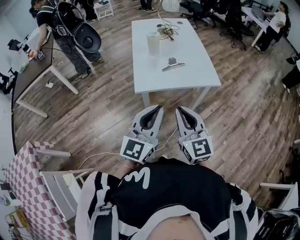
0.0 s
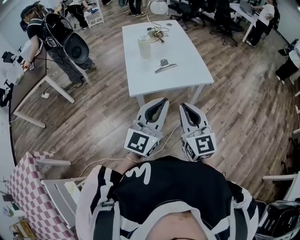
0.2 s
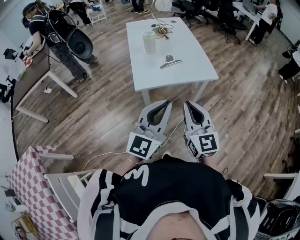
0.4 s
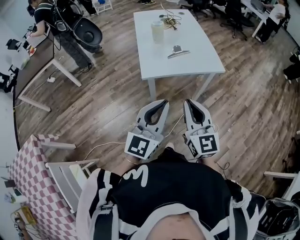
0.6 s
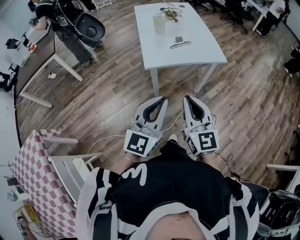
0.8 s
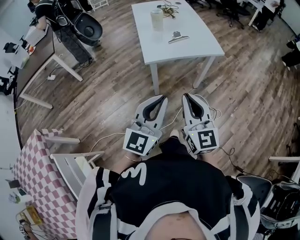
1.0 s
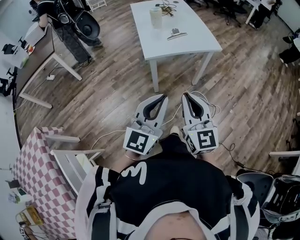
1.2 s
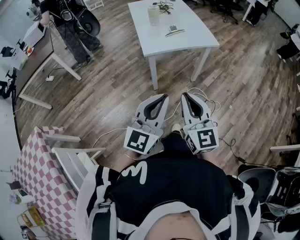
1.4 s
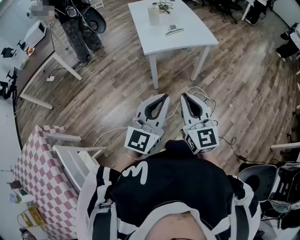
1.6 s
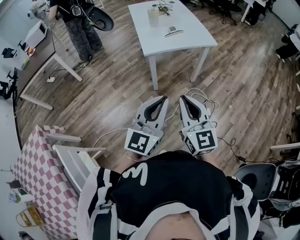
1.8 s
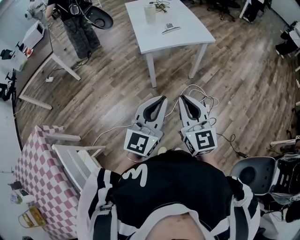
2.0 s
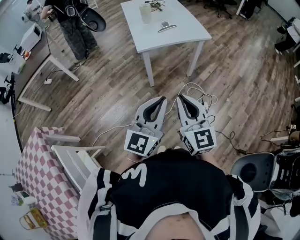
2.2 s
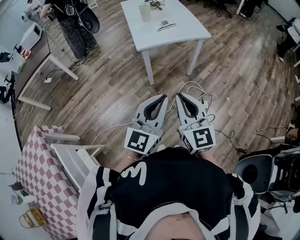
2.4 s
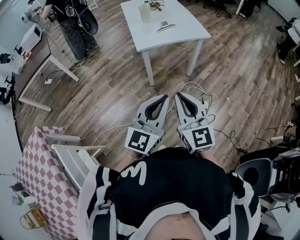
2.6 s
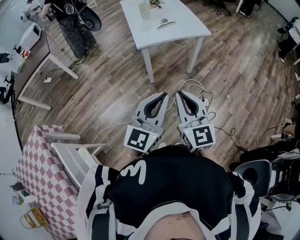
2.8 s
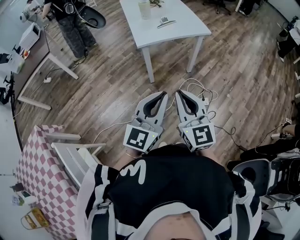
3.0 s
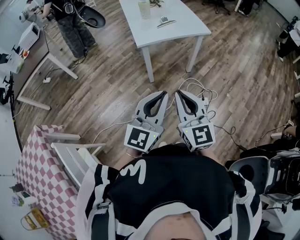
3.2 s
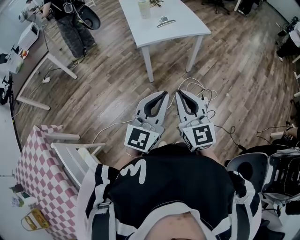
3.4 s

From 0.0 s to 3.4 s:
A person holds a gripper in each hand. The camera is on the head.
From 0.0 s to 1.6 s: The grippers both shift backward by some 25 cm.
From 1.6 s to 3.4 s: The grippers make only small movements.

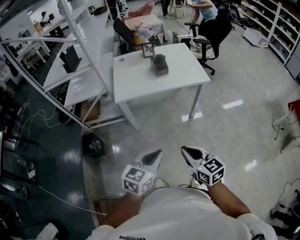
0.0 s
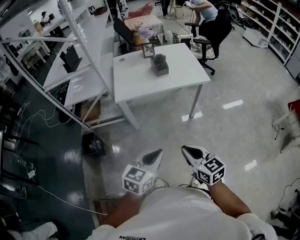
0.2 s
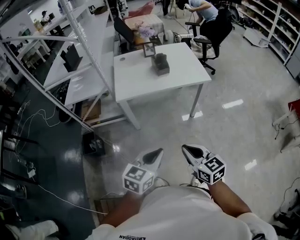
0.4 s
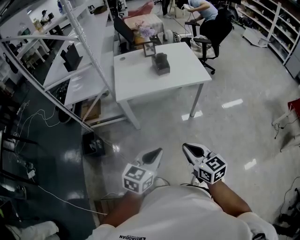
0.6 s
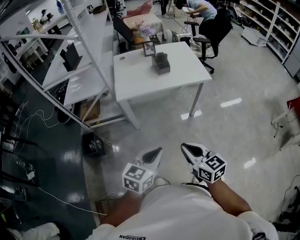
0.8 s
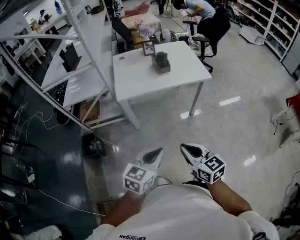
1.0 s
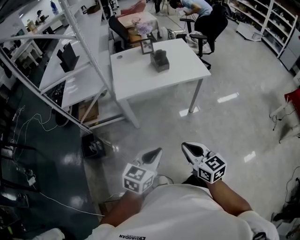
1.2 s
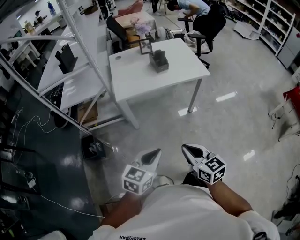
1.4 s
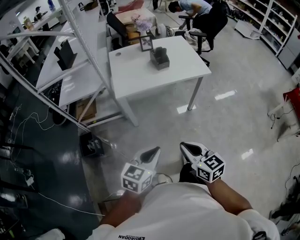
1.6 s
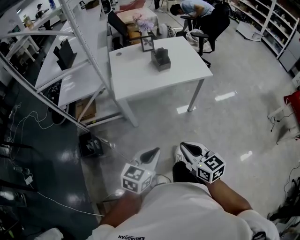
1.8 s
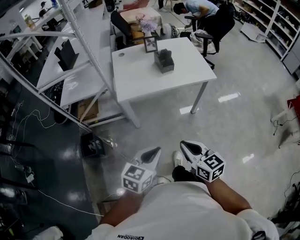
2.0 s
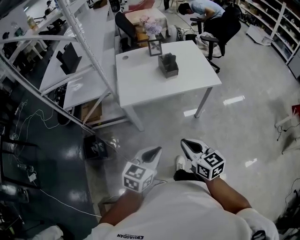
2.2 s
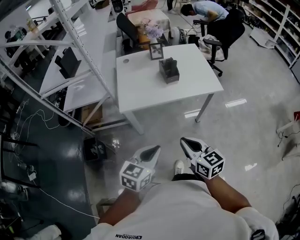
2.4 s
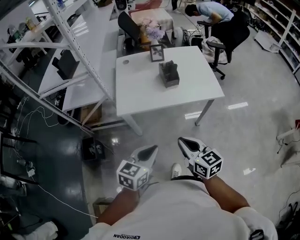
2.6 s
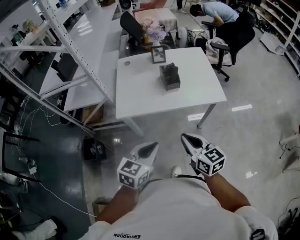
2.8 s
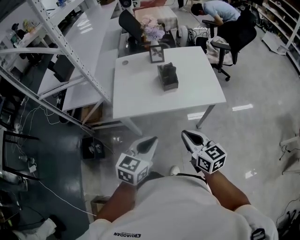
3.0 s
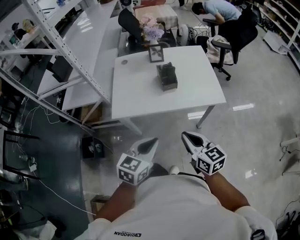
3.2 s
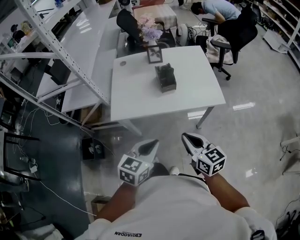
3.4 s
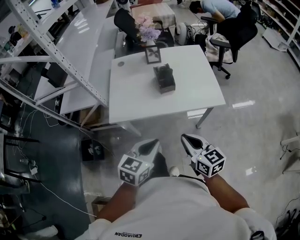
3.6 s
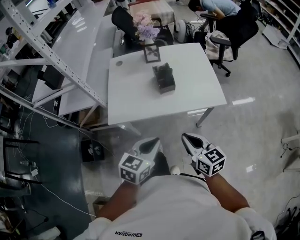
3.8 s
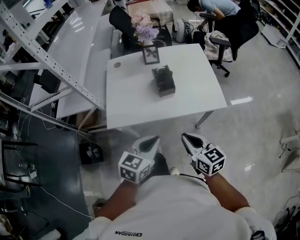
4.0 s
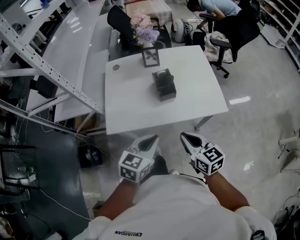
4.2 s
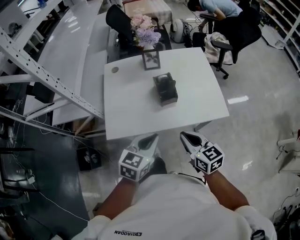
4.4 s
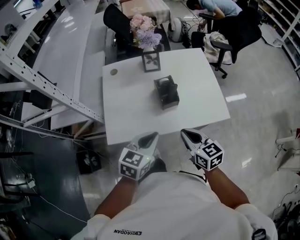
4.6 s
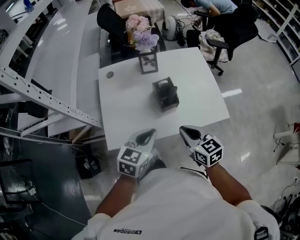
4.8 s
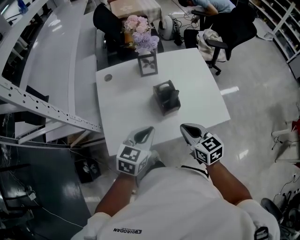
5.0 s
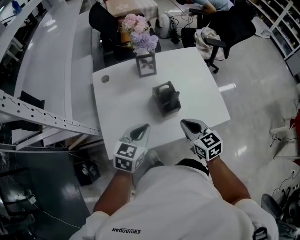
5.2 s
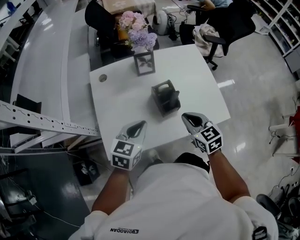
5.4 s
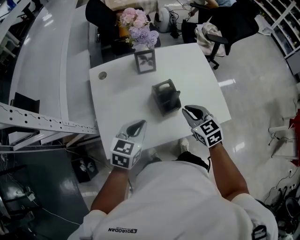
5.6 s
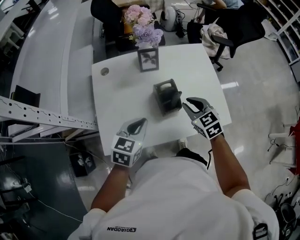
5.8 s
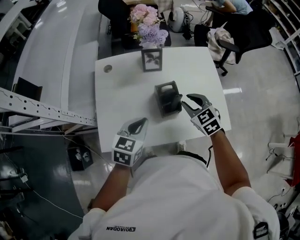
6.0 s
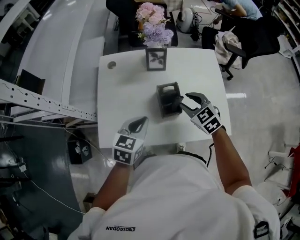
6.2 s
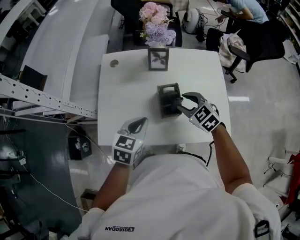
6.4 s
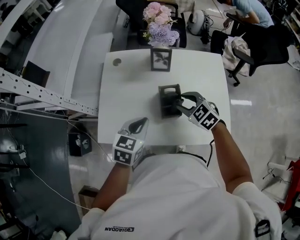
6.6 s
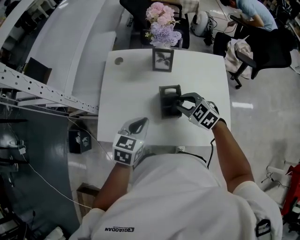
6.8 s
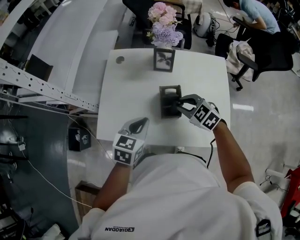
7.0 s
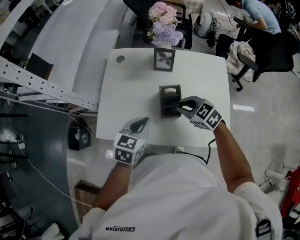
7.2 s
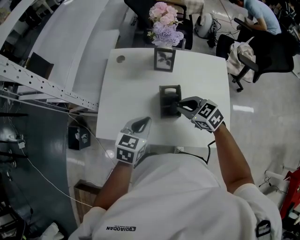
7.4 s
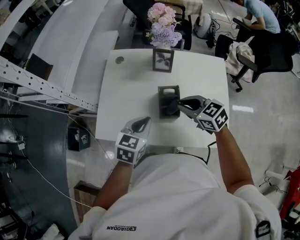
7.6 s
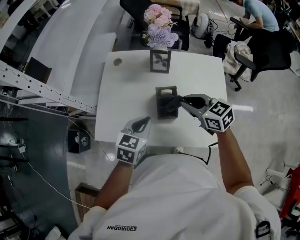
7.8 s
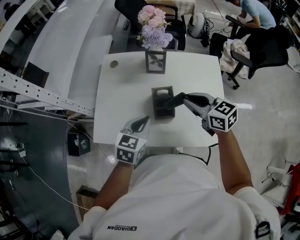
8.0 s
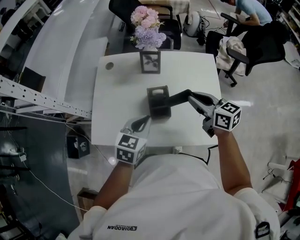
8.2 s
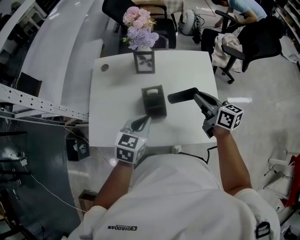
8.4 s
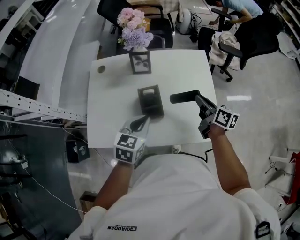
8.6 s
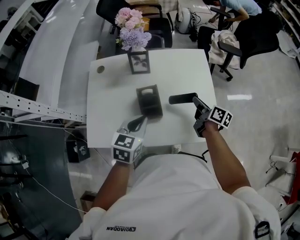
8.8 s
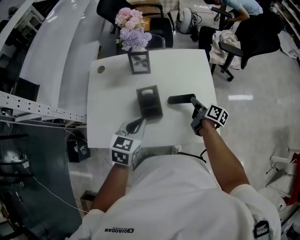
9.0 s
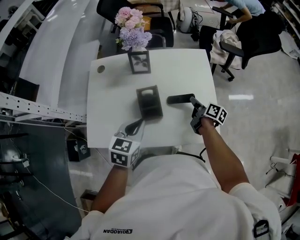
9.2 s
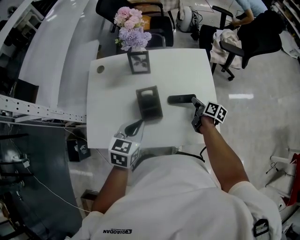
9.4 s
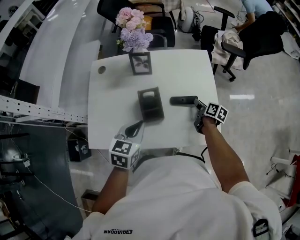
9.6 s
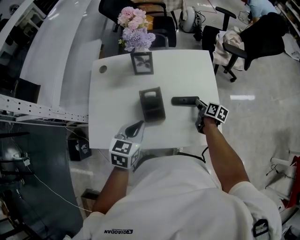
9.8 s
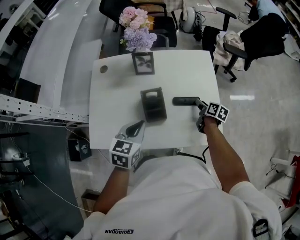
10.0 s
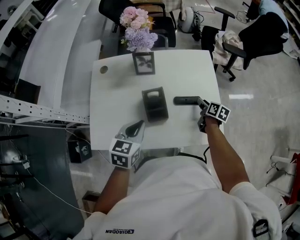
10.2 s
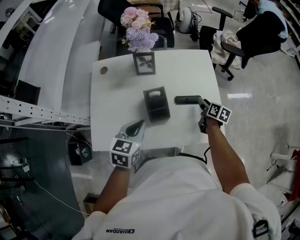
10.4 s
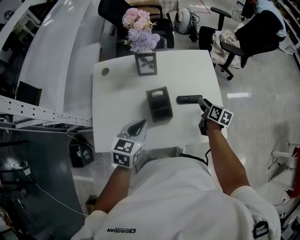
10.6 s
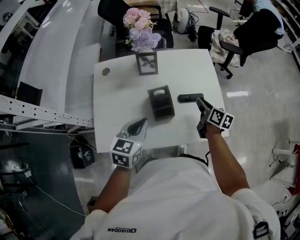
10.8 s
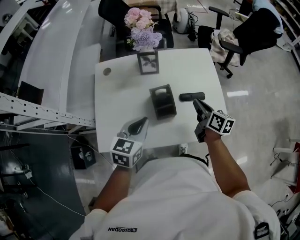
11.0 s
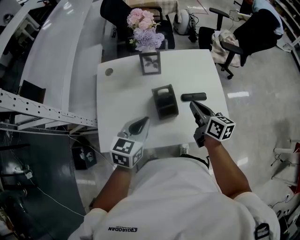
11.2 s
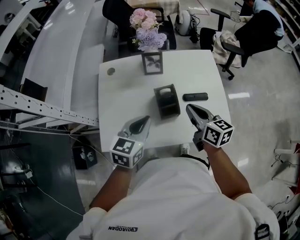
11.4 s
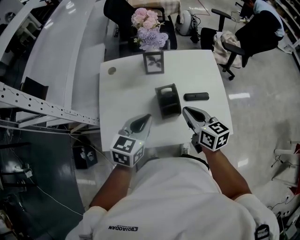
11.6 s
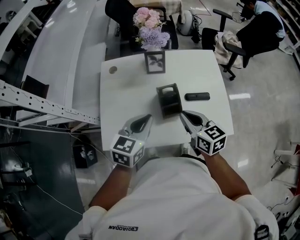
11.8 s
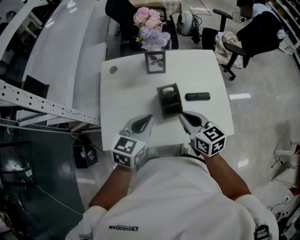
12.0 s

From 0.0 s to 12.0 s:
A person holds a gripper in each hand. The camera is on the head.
From 0.0 s to 1.6 s: The two grippers go roughly 10 cm to the left.
From 1.6 s to 3.0 s: The grippers both shift forward by some 25 cm.
From 3.0 s to 4.4 s: The grippers both shift forward by approximately 15 cm.
From 4.4 s to 6.0 s: The two grippers go about 20 cm forward. The right gripper turns by some 30 degrees, and opens.
From 6.0 s to 7.6 s: The right gripper rotates about 30 degrees.
From 7.6 s to 9.0 s: The right gripper moves to the right and downward, roughly 25 cm, and rolls clockwise, seen from behind, by approximately 70 degrees. The left gripper heads to the right, covering approximately 5 cm.
From 9.0 s to 10.4 s: The right gripper swivels some 20 degrees, and opens.
From 10.4 s to 12.0 s: The right gripper travels to the left, upward and backward by roughly 30 cm, changes its angle by about 40 degrees, and closes. Meanwhile the left gripper moves upward, some 5 cm.

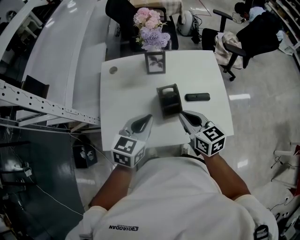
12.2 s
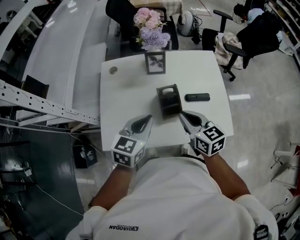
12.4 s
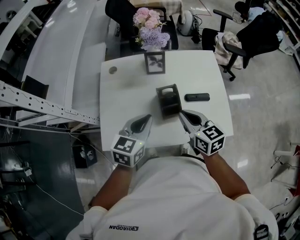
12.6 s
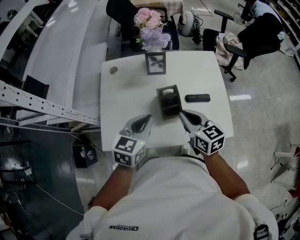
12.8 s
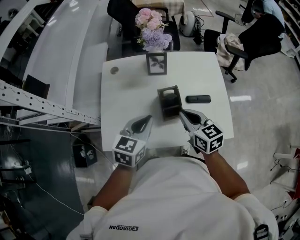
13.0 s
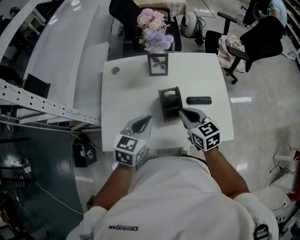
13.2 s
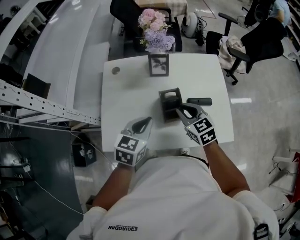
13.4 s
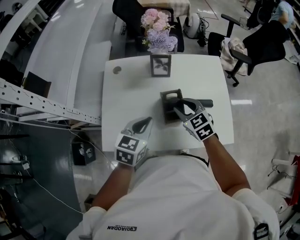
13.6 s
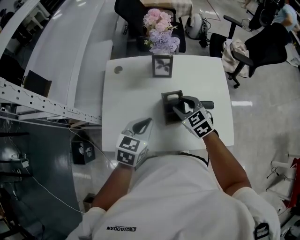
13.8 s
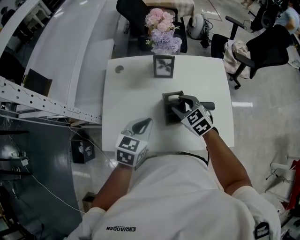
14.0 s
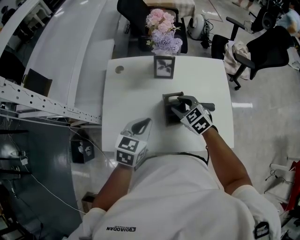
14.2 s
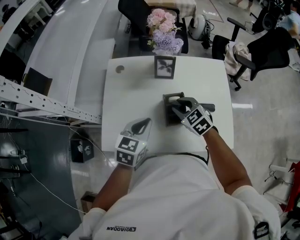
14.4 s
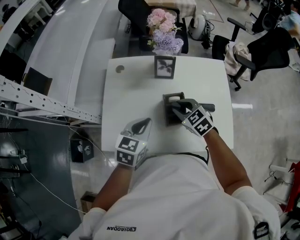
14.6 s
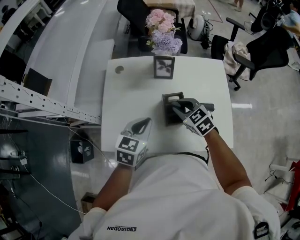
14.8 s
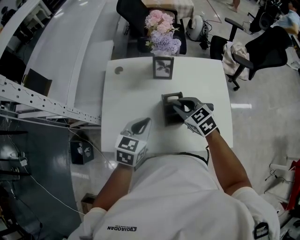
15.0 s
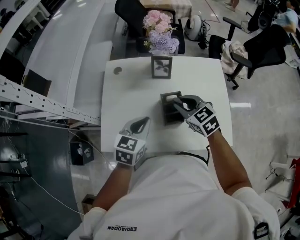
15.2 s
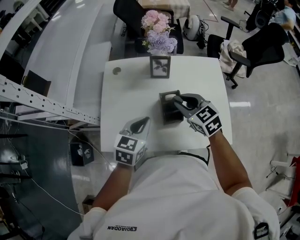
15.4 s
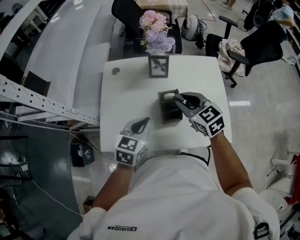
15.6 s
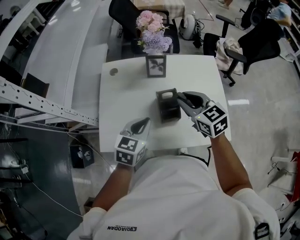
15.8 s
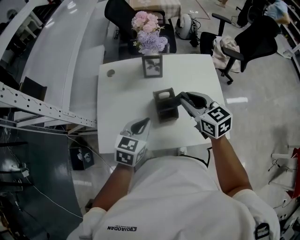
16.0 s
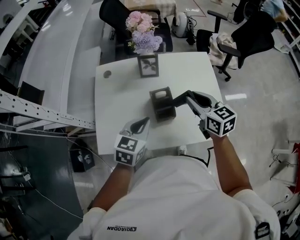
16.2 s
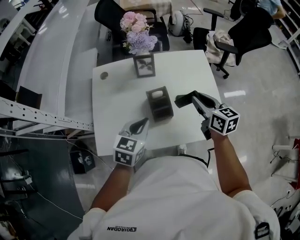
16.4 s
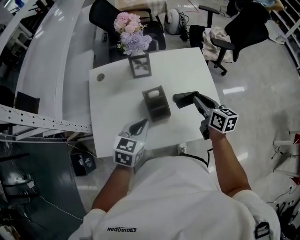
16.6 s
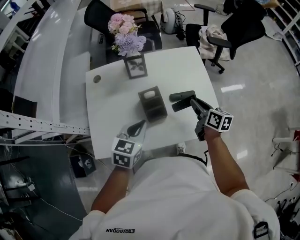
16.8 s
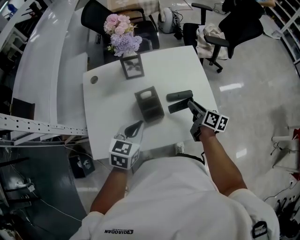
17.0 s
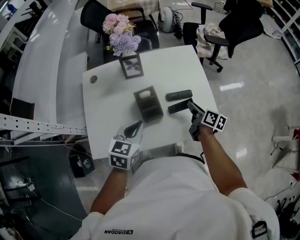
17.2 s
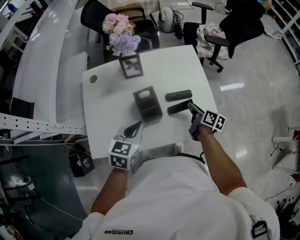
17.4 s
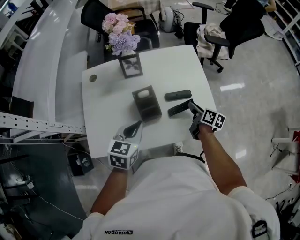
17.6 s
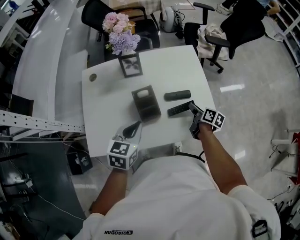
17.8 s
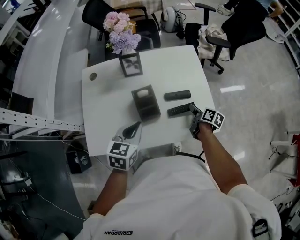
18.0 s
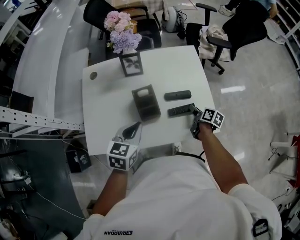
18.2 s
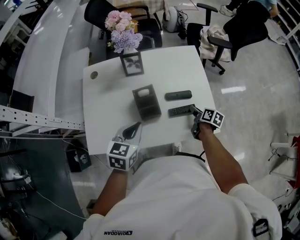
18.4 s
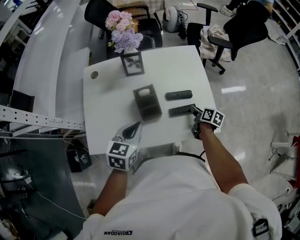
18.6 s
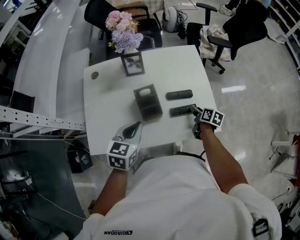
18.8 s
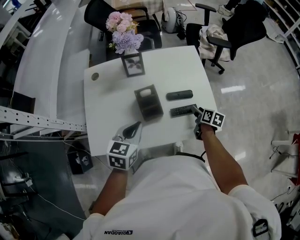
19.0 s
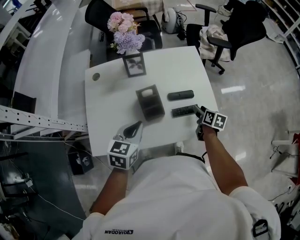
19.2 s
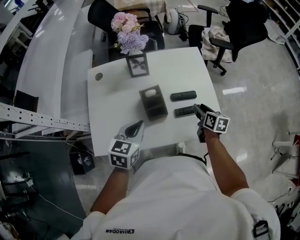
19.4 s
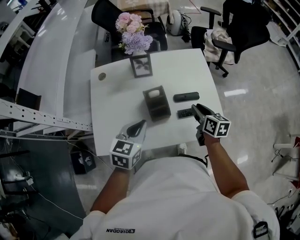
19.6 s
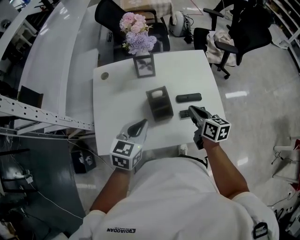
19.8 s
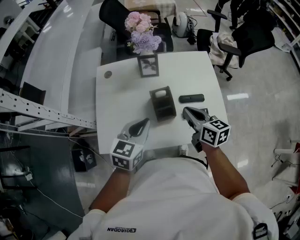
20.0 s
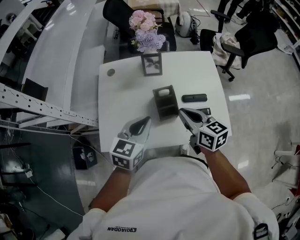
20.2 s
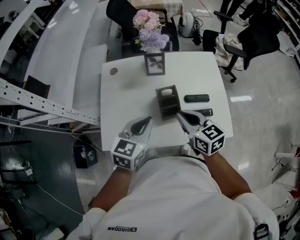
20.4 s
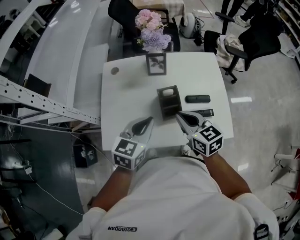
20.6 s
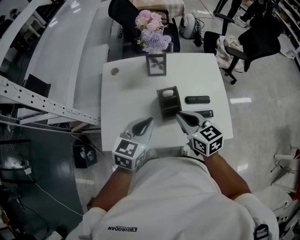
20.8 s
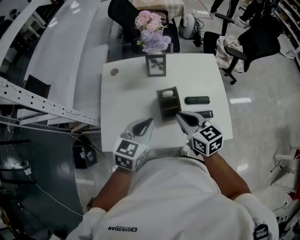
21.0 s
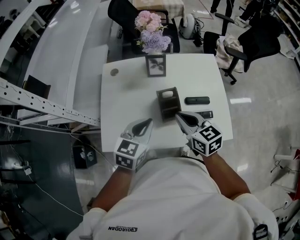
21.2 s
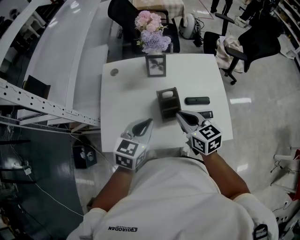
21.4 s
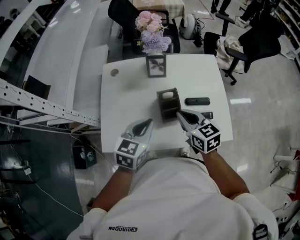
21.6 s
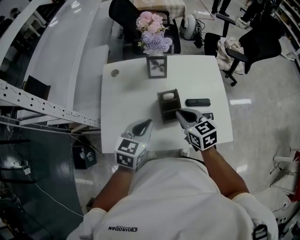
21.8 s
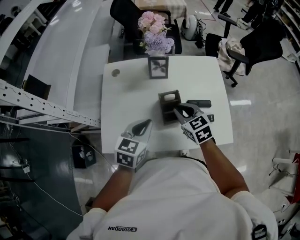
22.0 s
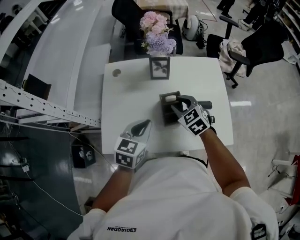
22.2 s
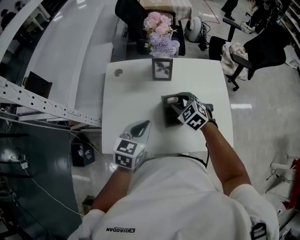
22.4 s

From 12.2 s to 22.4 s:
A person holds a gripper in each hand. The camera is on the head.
From 12.2 s to 13.6 s: The right gripper goes some 10 cm forward, turns by approximately 30 degrees, and opens its fingers.
From 13.6 s to 15.2 s: There are only small adjustments of the grippers.
From 15.2 s to 16.6 s: The right gripper heads to the right, covering approximately 15 cm, and rotates around the line of its fingers by about 40 degrees, clockwise from behind. Meanwhile the left gripper is displaced to the right by about 5 cm.
From 16.6 s to 18.0 s: The right gripper shifts about 20 cm downward and to the right, and turns by roughly 40 degrees.
From 18.0 s to 19.4 s: The right gripper moves upward, some 5 cm, and rotates about 30 degrees.
From 19.4 s to 21.0 s: The right gripper heads to the left and upward, covering approximately 25 cm, changes its angle by about 40 degrees, and closes up.
From 21.0 s to 22.4 s: The right gripper goes about 15 cm forward and downward, rotates some 40 degrees, and opens its fingers. The left gripper changes place by some 5 cm.
